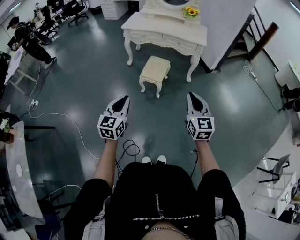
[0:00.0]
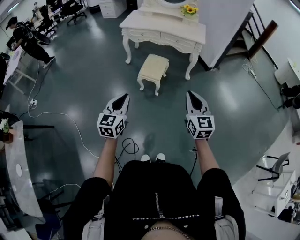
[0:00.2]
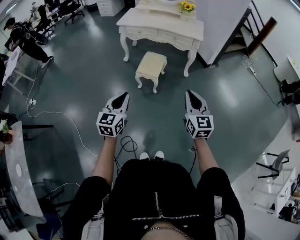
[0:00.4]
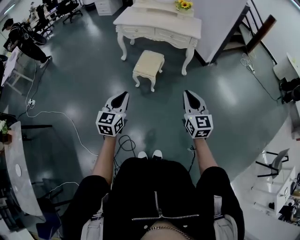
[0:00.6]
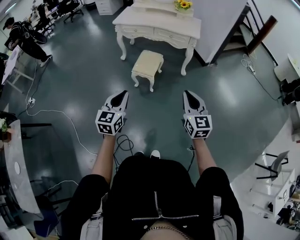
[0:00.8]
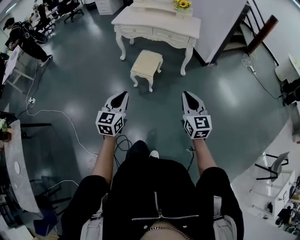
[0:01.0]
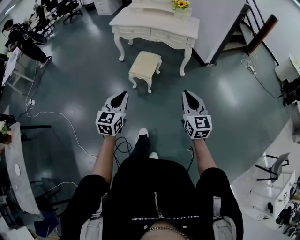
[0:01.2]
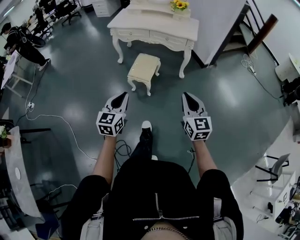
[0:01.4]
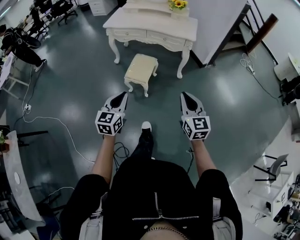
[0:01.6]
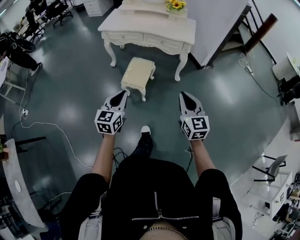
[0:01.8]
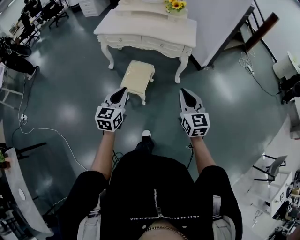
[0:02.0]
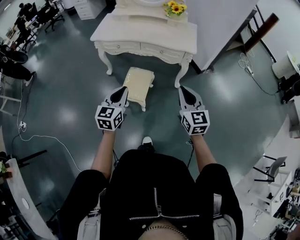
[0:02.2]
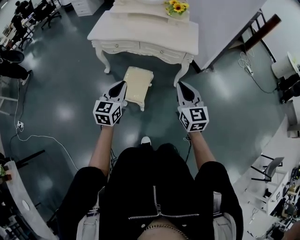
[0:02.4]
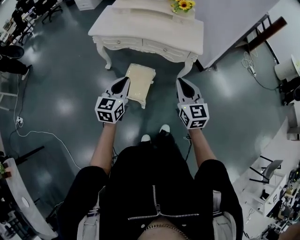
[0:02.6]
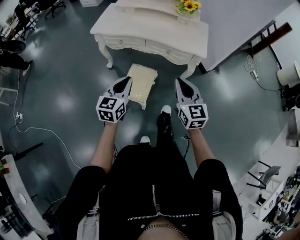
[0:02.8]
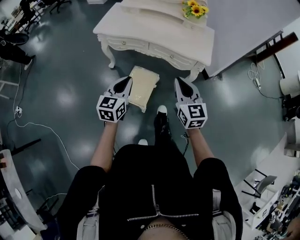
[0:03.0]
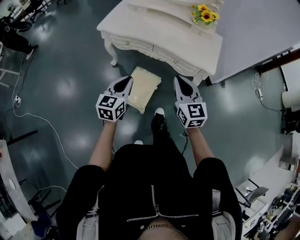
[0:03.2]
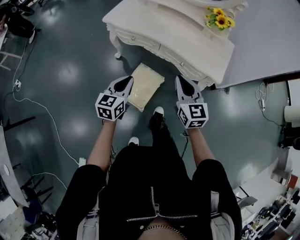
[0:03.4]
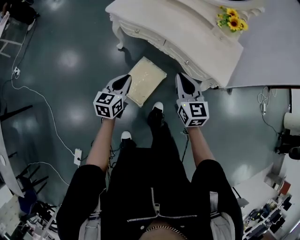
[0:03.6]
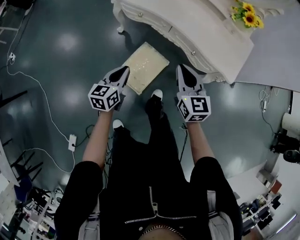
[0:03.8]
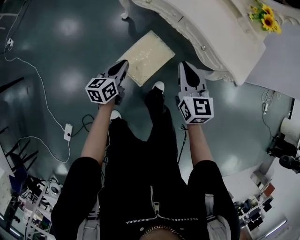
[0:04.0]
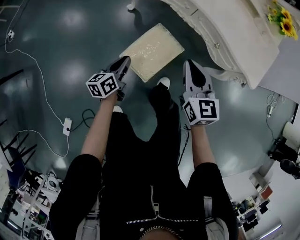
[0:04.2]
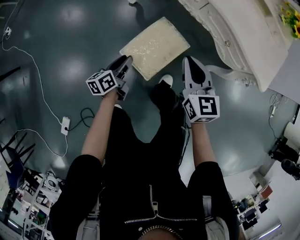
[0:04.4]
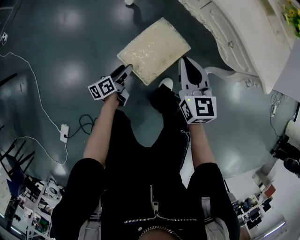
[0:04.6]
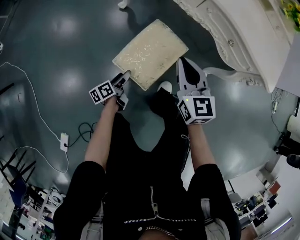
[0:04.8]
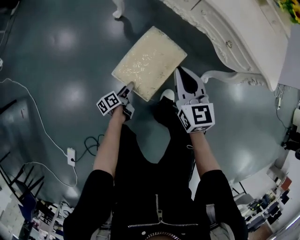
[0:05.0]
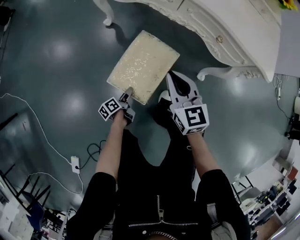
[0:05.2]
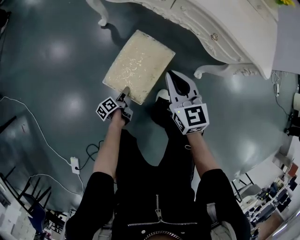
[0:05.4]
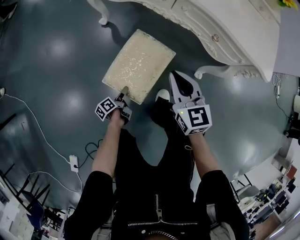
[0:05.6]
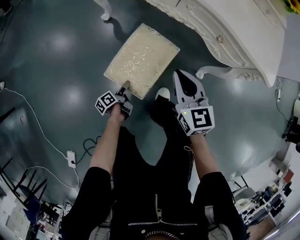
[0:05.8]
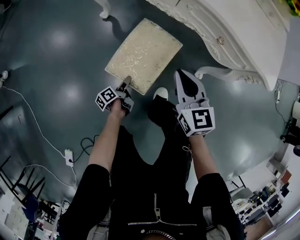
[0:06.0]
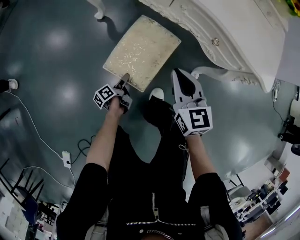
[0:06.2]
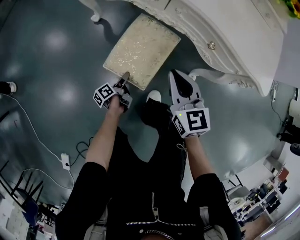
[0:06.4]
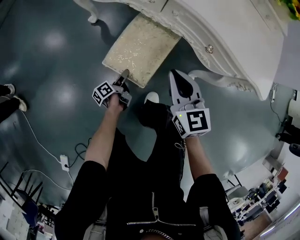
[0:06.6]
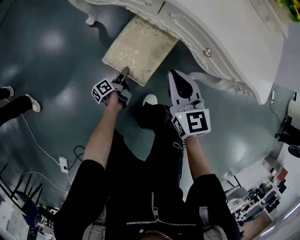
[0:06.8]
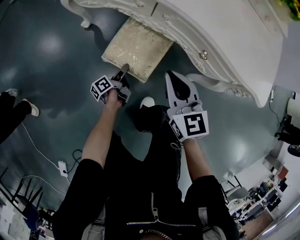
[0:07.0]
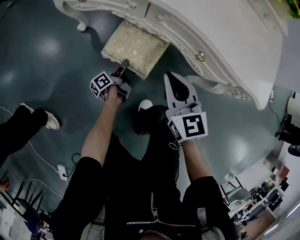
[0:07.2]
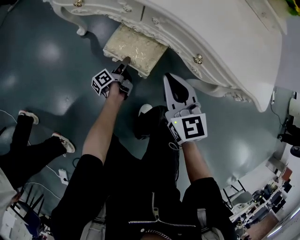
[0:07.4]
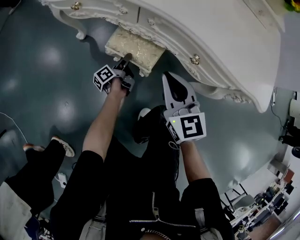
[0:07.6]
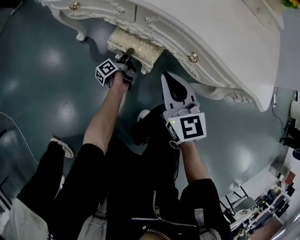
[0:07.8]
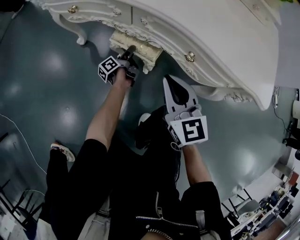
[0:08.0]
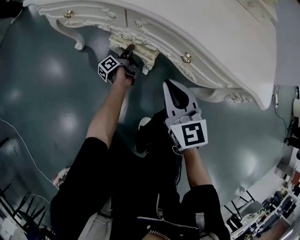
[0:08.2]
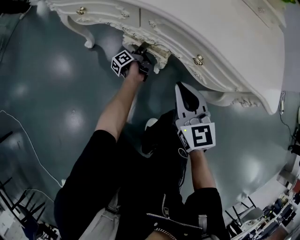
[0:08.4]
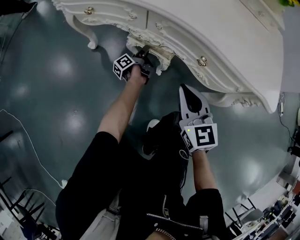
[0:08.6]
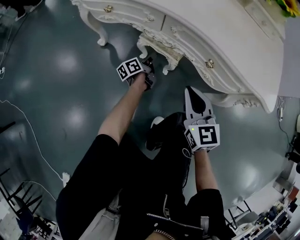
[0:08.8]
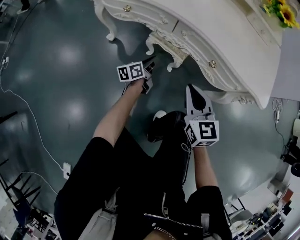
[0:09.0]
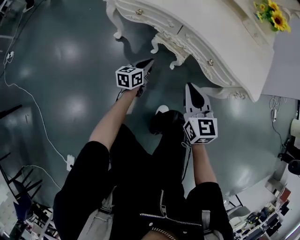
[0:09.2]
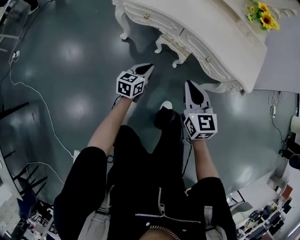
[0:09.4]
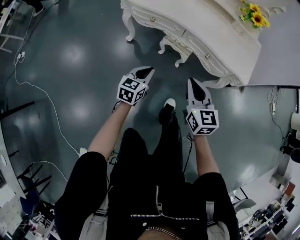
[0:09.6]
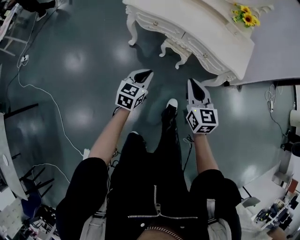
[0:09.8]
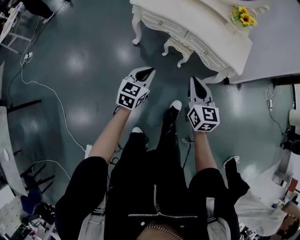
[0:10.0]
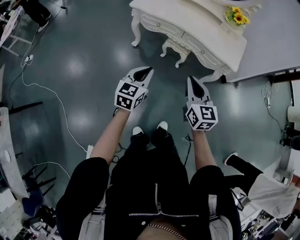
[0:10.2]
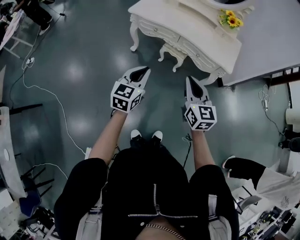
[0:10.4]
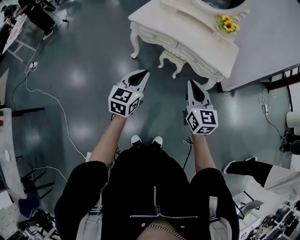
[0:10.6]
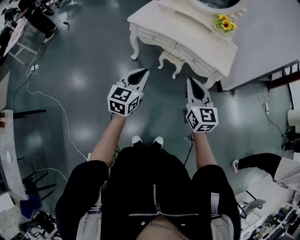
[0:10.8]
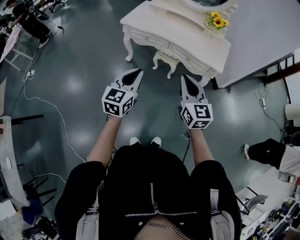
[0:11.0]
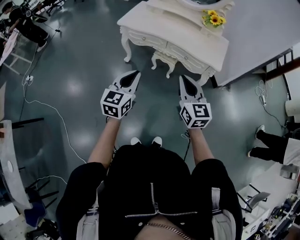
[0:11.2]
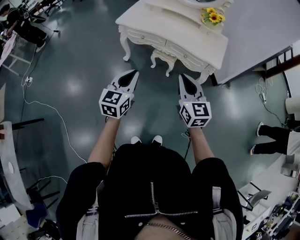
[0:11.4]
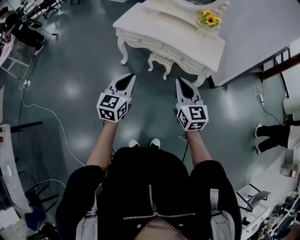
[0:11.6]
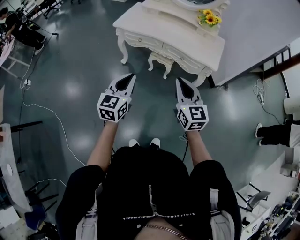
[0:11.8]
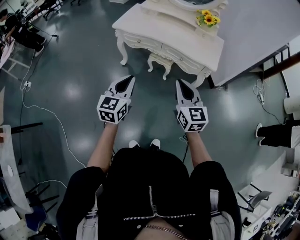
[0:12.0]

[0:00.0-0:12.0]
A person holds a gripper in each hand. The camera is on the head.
0:00.0 to 0:01.6: Both grippers travel together forward and to the right, approximately 15 cm.
0:01.6 to 0:03.0: The pair of grippers is taken forward, approximately 40 cm.
0:03.0 to 0:04.4: The left gripper shifts roughly 40 cm downward, rotates around the line of its fingers by about 50 degrees, counterclockwise from behind, and opens its fingers. Meanwhile the right gripper heads downward and forward, covering some 30 cm, and swivels roughly 20 degrees.
0:04.4 to 0:06.0: The left gripper travels downward by about 25 cm, turns by roughly 30 degrees, and opens. Meanwhile the right gripper moves downward and to the right, some 10 cm.
0:06.0 to 0:07.6: The right gripper moves forward and to the right, some 10 cm. The left gripper heads forward and to the right, covering approximately 30 cm.
0:07.6 to 0:09.0: The right gripper shifts about 5 cm backward; the left gripper shifts roughly 10 cm upward, moves approximately 10 cm forward and comes back, turns by some 40 degrees, and closes.
0:09.0 to 0:10.4: Both grippers travel together upward and backward, some 50 cm. The left gripper rotates around the line of its fingers by about 50 degrees, clockwise from behind.
0:10.4 to 0:12.0: The left gripper shifts by about 5 cm. The right gripper shifts by roughly 5 cm.

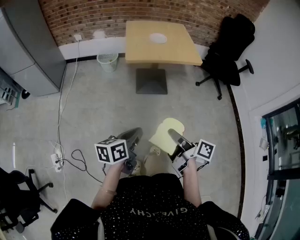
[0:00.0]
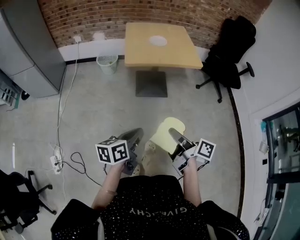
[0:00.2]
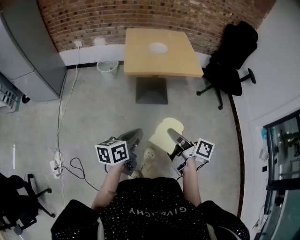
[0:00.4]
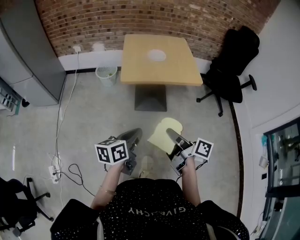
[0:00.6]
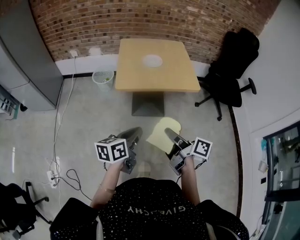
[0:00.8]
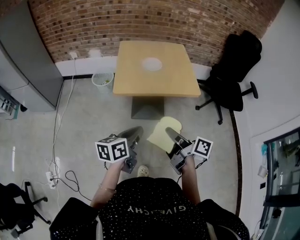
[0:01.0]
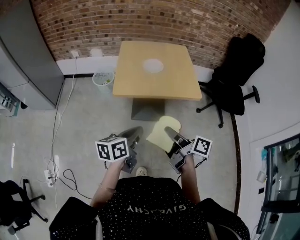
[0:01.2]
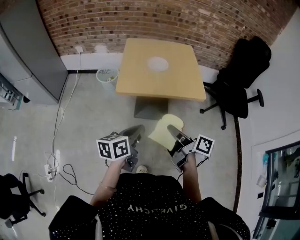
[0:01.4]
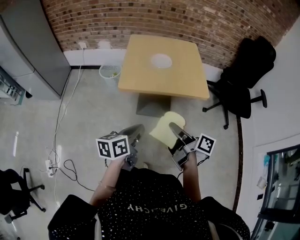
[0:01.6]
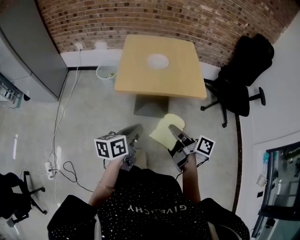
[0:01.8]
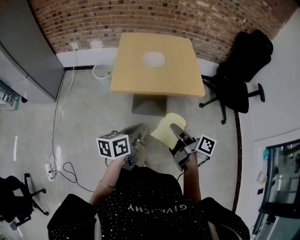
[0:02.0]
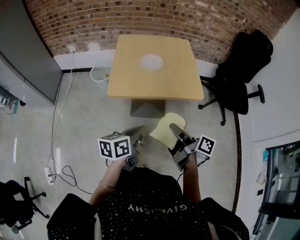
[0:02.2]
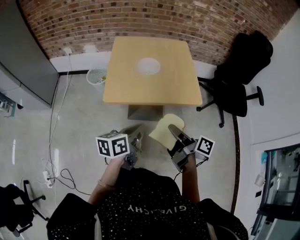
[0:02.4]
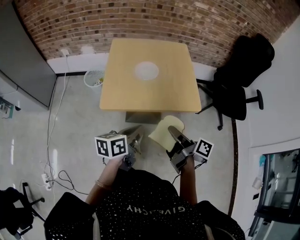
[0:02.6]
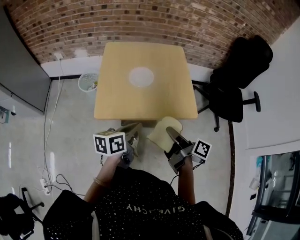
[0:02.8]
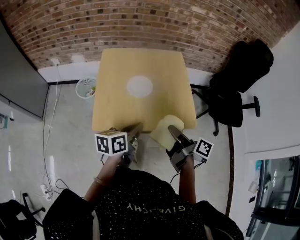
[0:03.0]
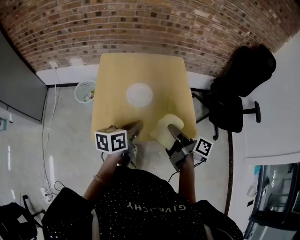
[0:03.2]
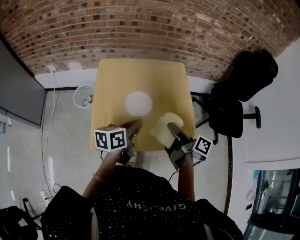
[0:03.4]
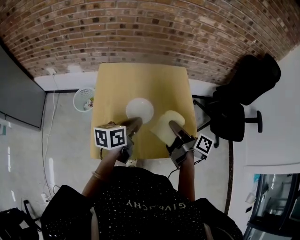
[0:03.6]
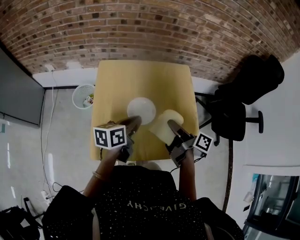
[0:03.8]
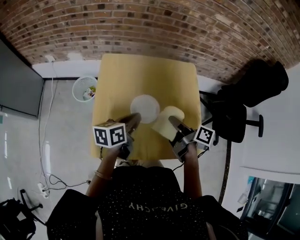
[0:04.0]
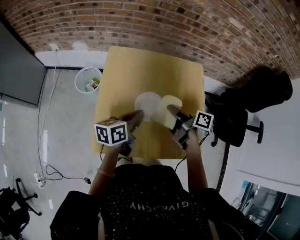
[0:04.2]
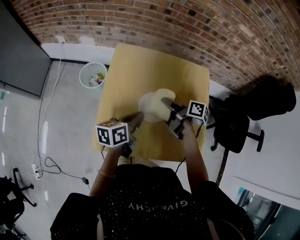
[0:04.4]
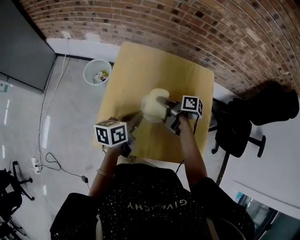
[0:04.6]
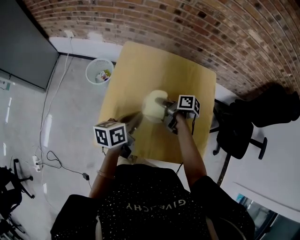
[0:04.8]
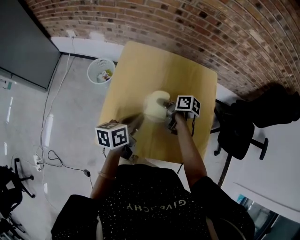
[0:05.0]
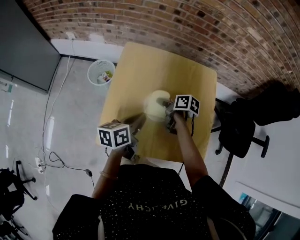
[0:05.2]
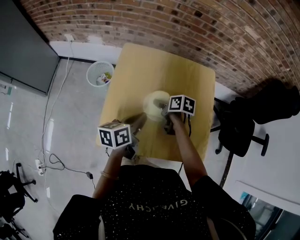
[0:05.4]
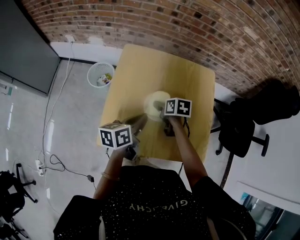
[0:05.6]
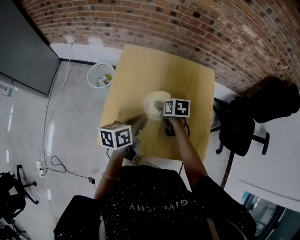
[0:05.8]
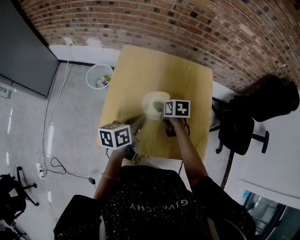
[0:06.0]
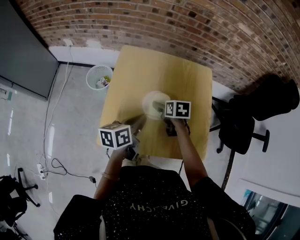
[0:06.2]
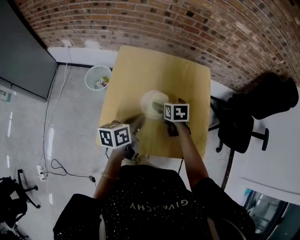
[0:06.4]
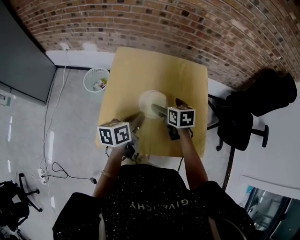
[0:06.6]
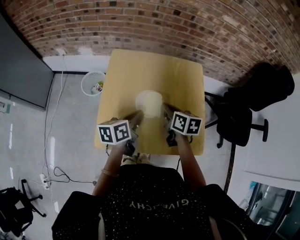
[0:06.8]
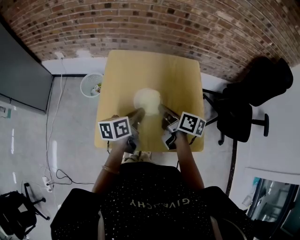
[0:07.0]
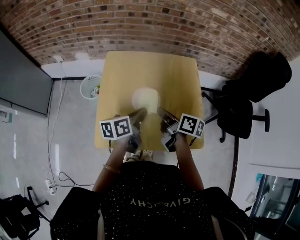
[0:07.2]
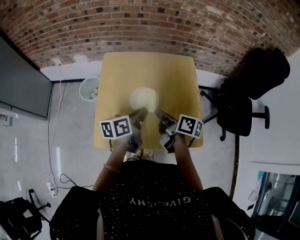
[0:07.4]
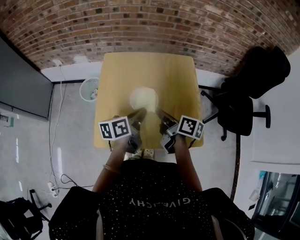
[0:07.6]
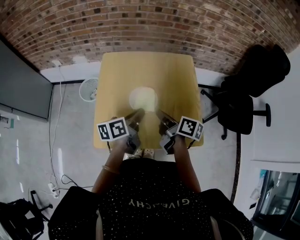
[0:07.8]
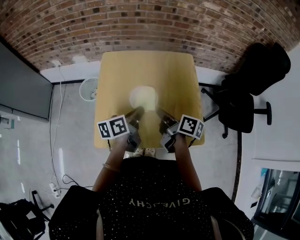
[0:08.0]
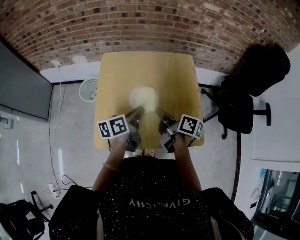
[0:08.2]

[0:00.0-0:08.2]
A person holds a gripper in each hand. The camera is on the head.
0:00.0 to 0:01.6: The left gripper changes place by approximately 30 cm.
0:01.6 to 0:03.2: The left gripper ends up approximately 35 cm from where it was.
0:03.2 to 0:05.0: The left gripper ends up roughly 15 cm from where it was.

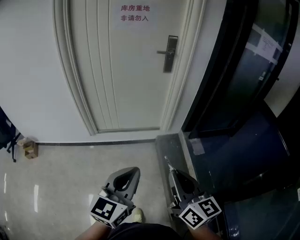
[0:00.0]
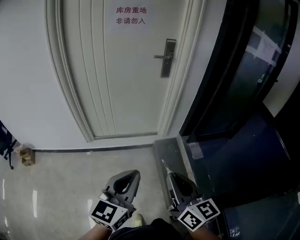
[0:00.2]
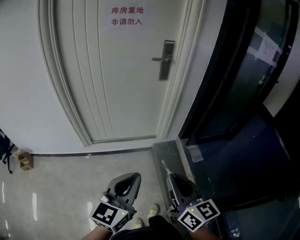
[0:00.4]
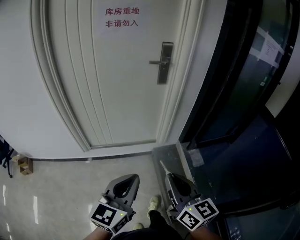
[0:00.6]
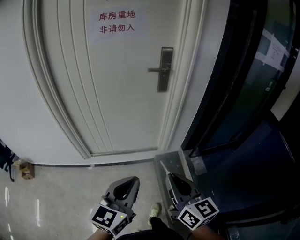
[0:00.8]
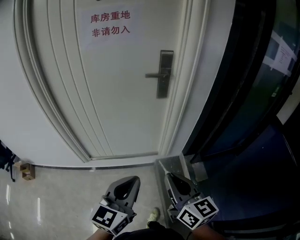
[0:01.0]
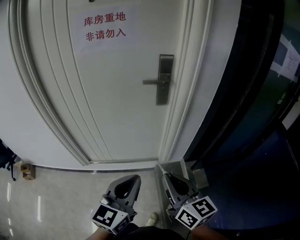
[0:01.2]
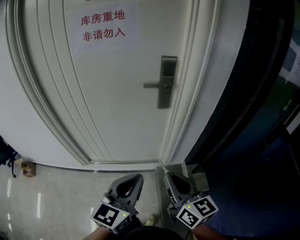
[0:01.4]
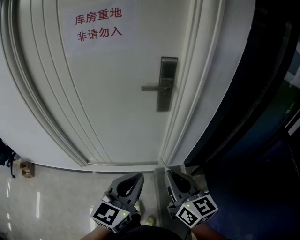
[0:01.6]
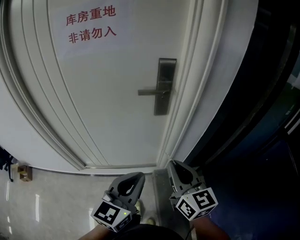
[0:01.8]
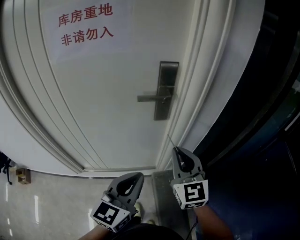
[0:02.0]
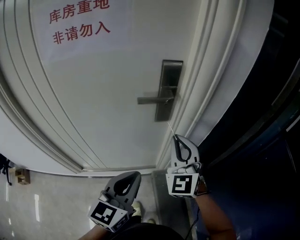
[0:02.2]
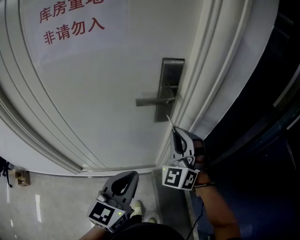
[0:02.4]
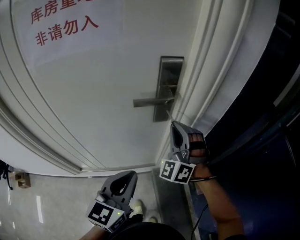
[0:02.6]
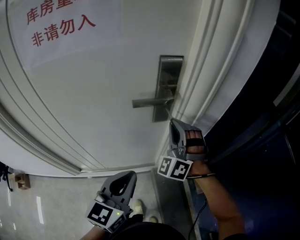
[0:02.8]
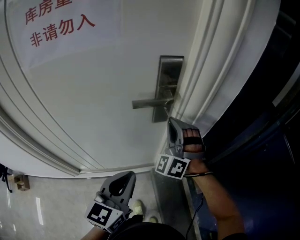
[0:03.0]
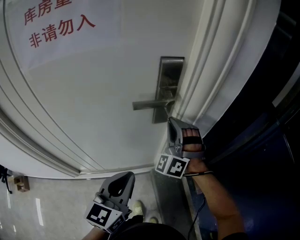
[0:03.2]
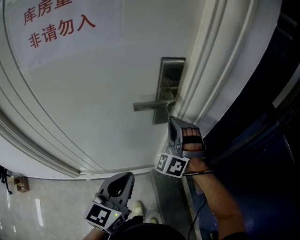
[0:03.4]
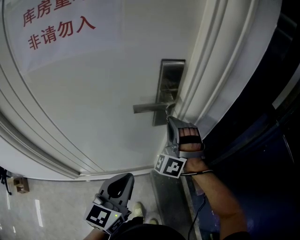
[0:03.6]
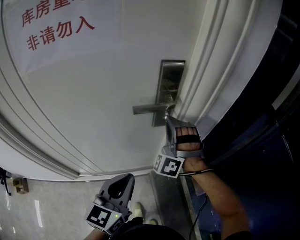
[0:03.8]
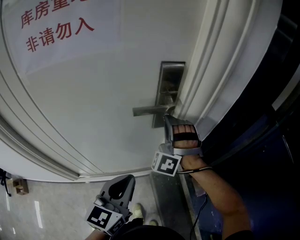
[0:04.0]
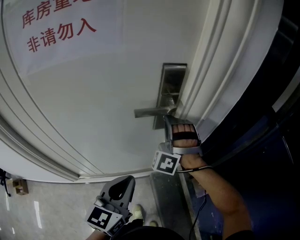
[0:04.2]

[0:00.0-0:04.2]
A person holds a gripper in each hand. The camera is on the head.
0:00.0 to 0:01.4: The two grippers go some 40 cm forward.
0:01.4 to 0:02.8: The right gripper moves forward, about 35 cm, and rolls counterclockwise, seen from behind, by roughly 90 degrees. Meanwhile the left gripper moves forward, some 20 cm.
0:02.8 to 0:04.2: The right gripper moves roughly 5 cm.
